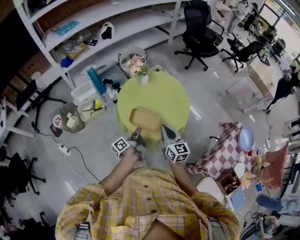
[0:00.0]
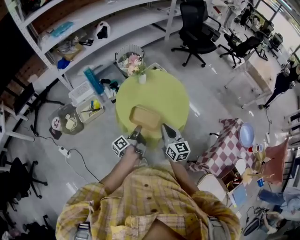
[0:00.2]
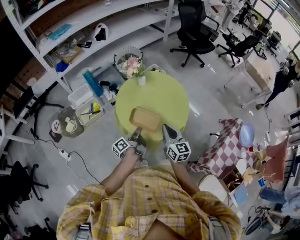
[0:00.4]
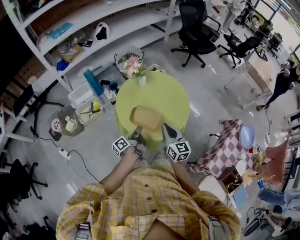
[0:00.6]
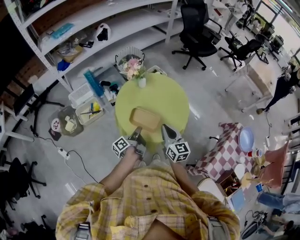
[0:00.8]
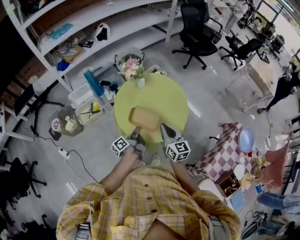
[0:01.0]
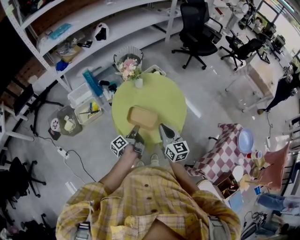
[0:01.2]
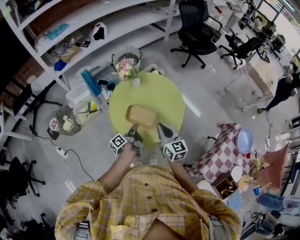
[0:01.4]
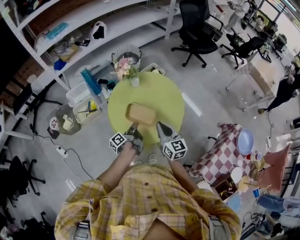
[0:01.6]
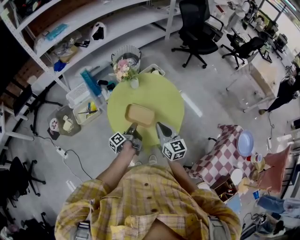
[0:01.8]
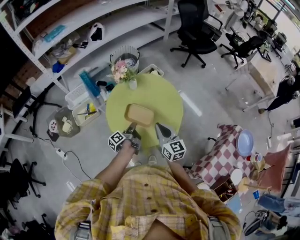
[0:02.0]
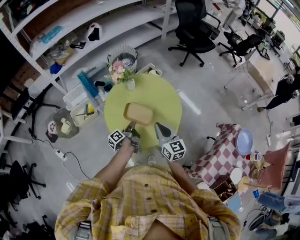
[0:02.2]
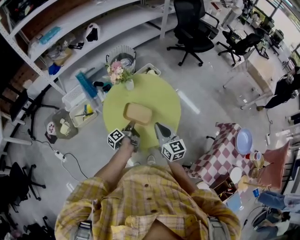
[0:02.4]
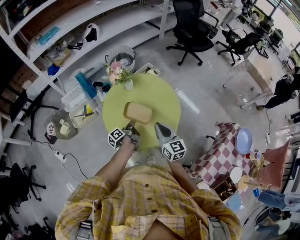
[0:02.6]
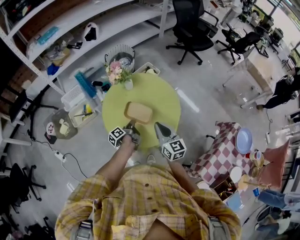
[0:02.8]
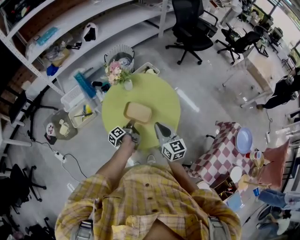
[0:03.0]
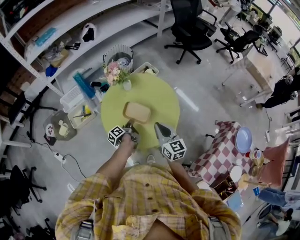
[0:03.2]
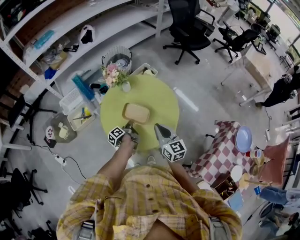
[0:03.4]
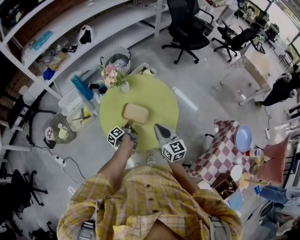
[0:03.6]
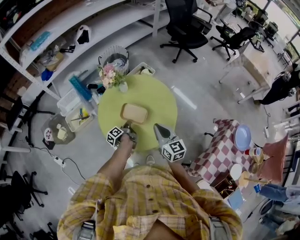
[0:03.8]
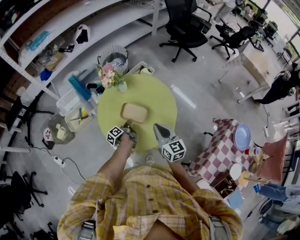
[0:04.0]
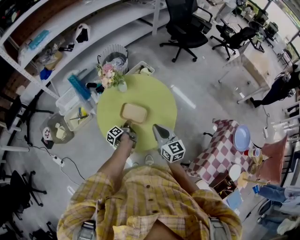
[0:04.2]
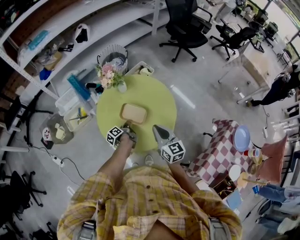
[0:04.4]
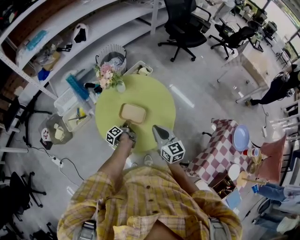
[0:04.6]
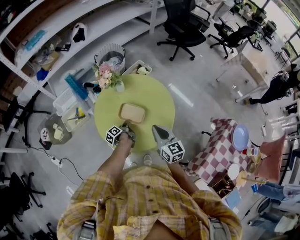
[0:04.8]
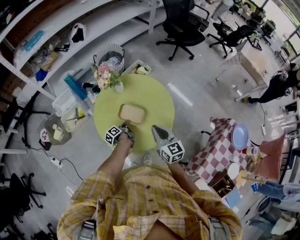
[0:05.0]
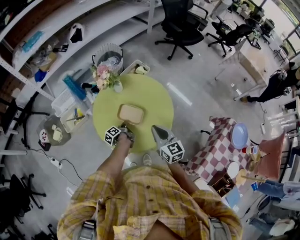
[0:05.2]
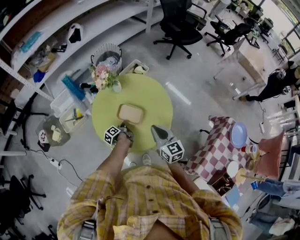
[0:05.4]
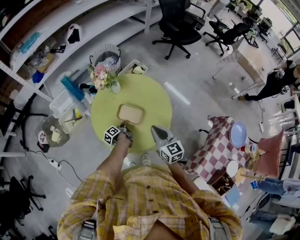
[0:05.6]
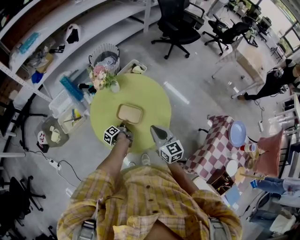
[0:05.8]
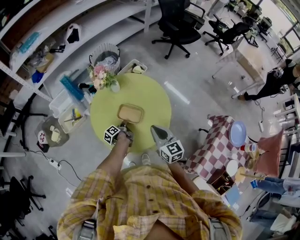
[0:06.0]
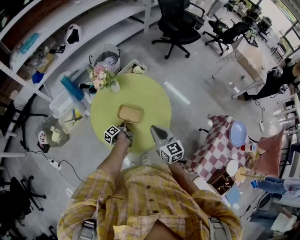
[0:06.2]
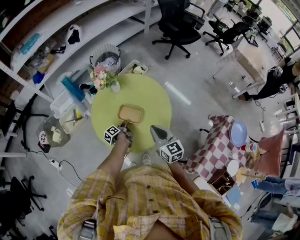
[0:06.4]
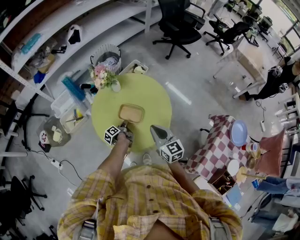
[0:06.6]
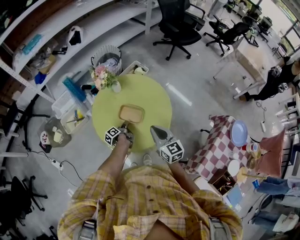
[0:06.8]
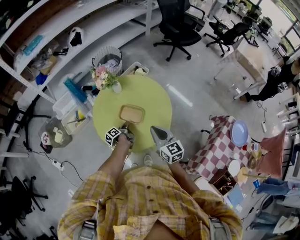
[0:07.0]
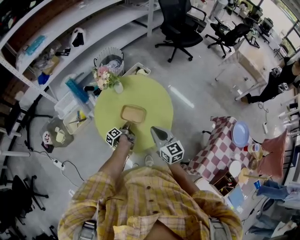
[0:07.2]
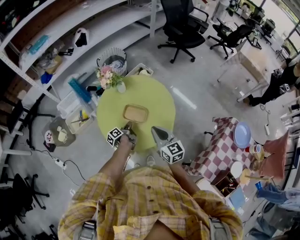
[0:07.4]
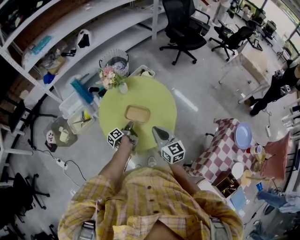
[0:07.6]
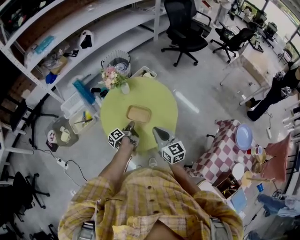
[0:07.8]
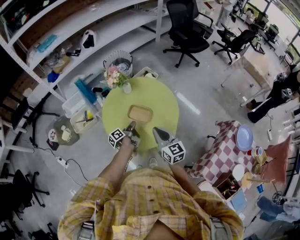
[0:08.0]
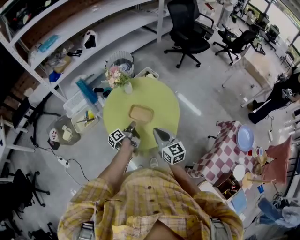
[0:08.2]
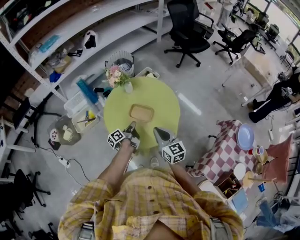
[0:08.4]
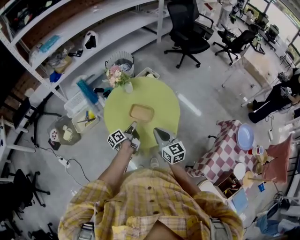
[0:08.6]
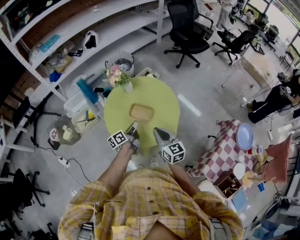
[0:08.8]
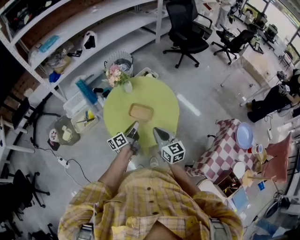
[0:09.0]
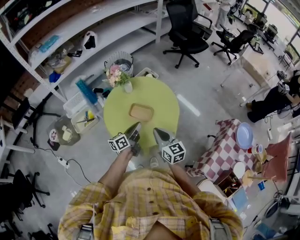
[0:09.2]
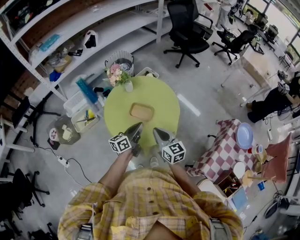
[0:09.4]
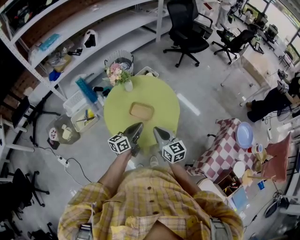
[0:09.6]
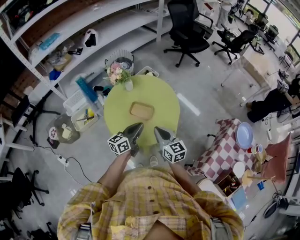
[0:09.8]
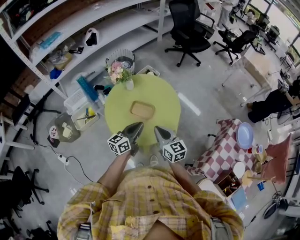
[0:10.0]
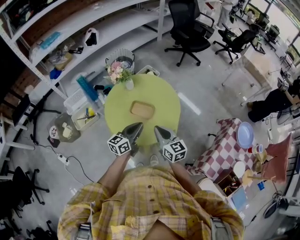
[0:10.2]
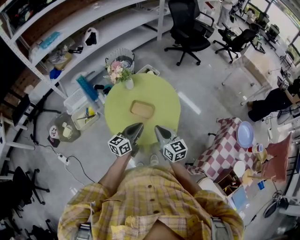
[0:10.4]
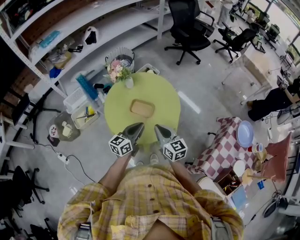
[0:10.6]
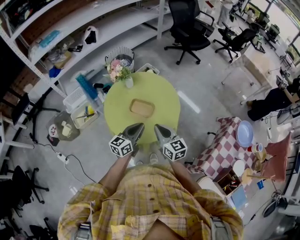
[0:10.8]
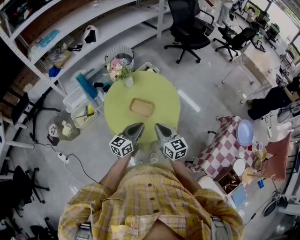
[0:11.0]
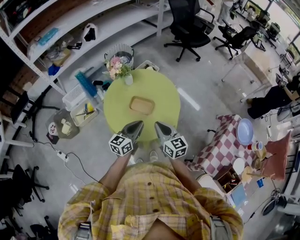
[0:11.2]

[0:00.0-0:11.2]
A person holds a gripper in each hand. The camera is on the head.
0:00.0 to 0:01.6: The right gripper shifts by about 10 cm.
0:06.4 to 0:08.0: The right gripper moves about 5 cm.

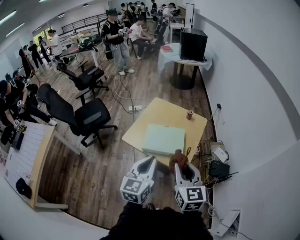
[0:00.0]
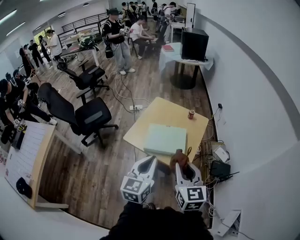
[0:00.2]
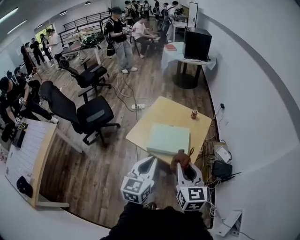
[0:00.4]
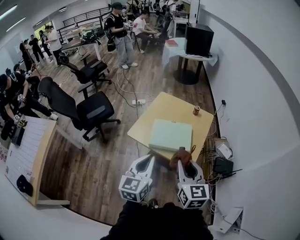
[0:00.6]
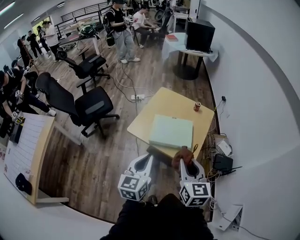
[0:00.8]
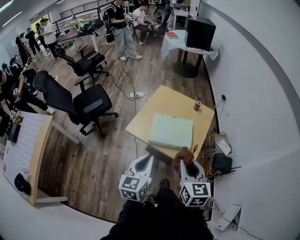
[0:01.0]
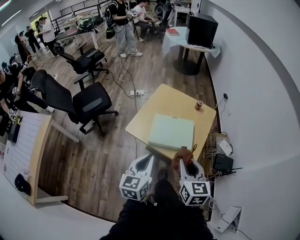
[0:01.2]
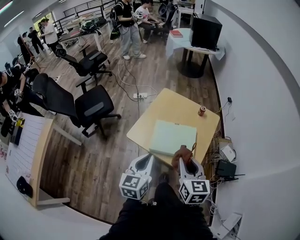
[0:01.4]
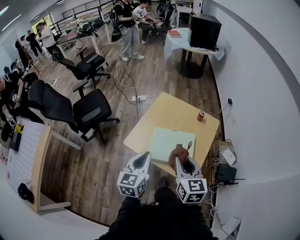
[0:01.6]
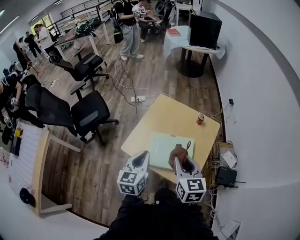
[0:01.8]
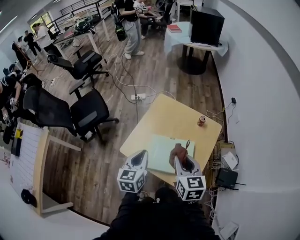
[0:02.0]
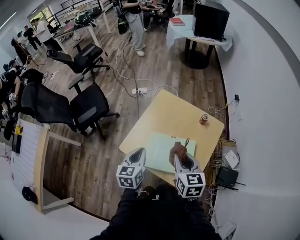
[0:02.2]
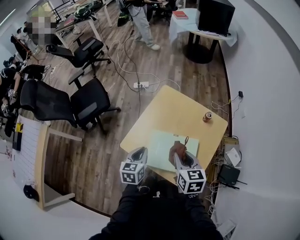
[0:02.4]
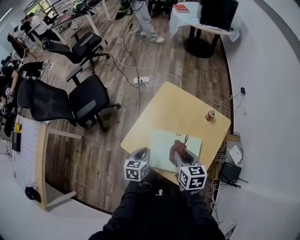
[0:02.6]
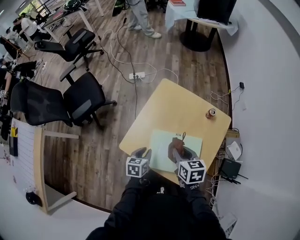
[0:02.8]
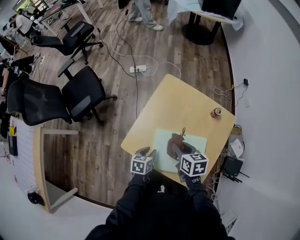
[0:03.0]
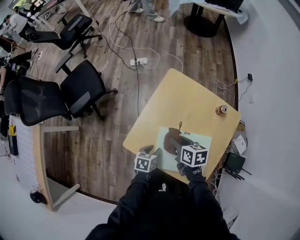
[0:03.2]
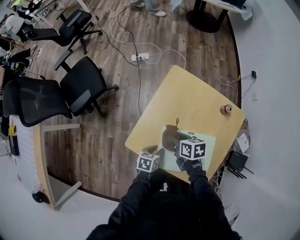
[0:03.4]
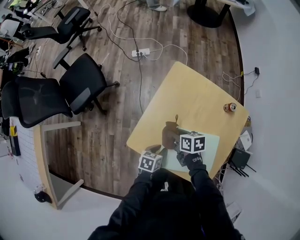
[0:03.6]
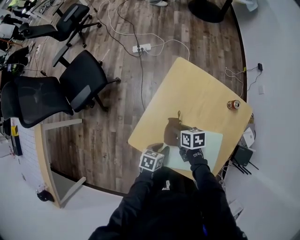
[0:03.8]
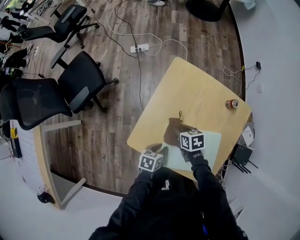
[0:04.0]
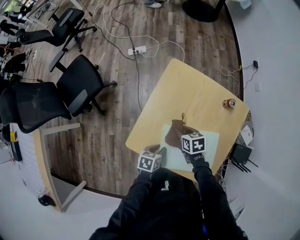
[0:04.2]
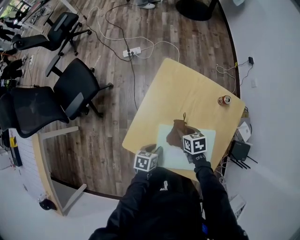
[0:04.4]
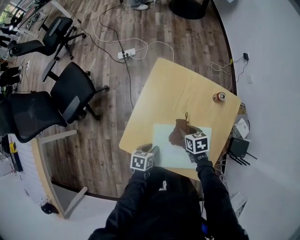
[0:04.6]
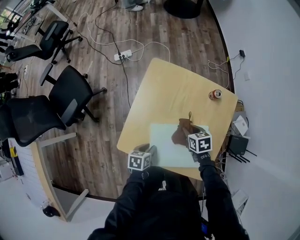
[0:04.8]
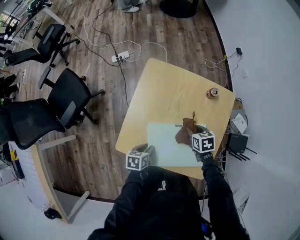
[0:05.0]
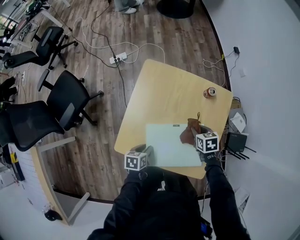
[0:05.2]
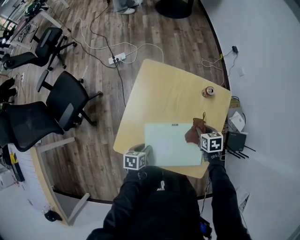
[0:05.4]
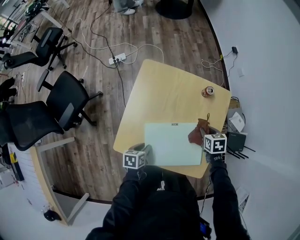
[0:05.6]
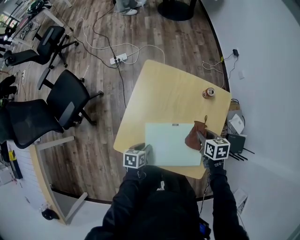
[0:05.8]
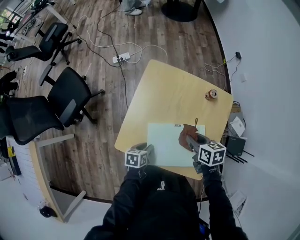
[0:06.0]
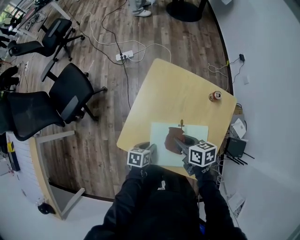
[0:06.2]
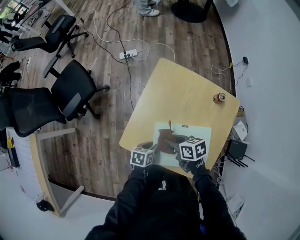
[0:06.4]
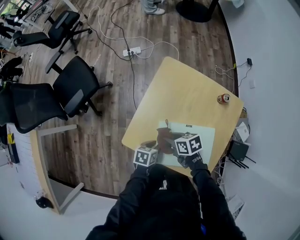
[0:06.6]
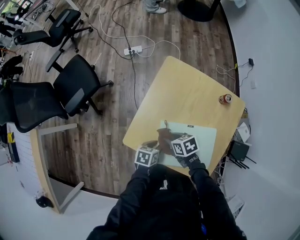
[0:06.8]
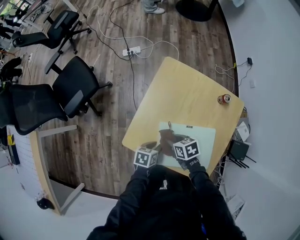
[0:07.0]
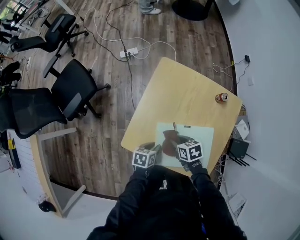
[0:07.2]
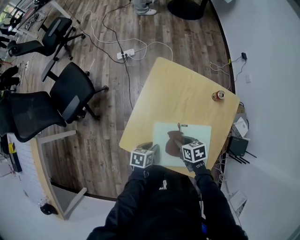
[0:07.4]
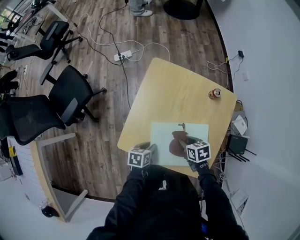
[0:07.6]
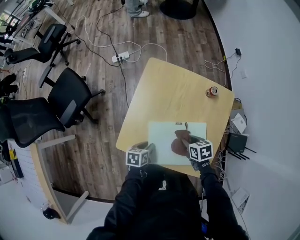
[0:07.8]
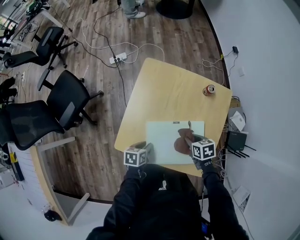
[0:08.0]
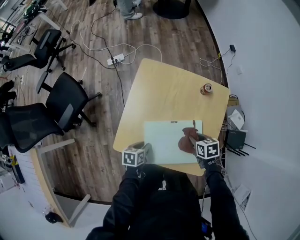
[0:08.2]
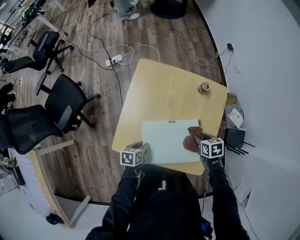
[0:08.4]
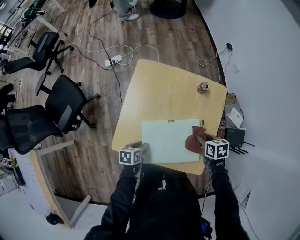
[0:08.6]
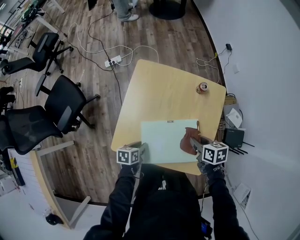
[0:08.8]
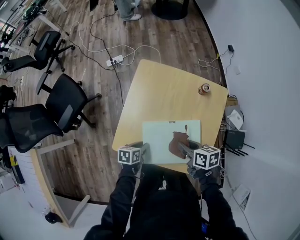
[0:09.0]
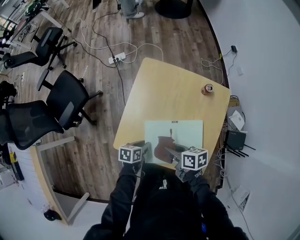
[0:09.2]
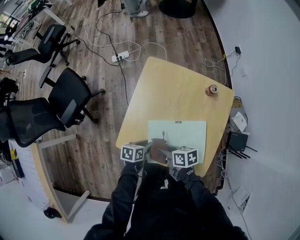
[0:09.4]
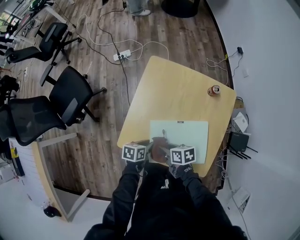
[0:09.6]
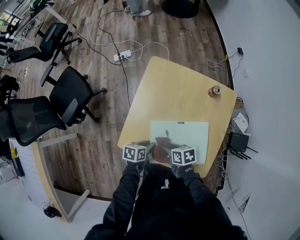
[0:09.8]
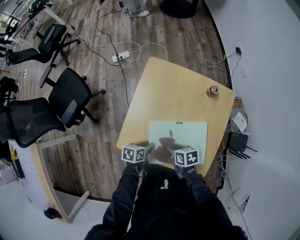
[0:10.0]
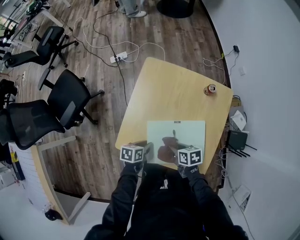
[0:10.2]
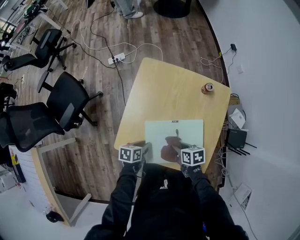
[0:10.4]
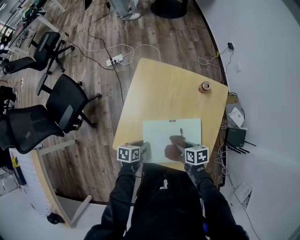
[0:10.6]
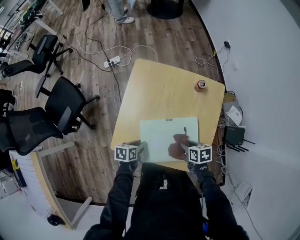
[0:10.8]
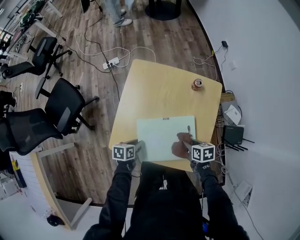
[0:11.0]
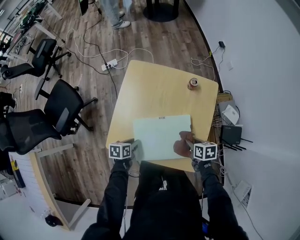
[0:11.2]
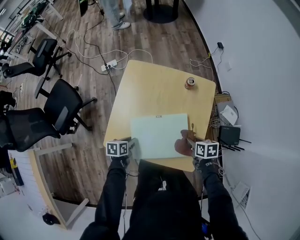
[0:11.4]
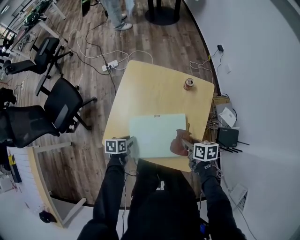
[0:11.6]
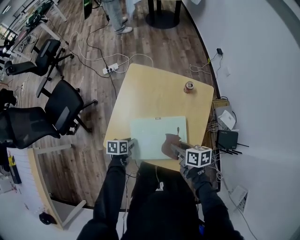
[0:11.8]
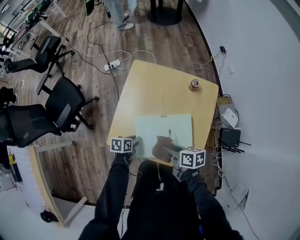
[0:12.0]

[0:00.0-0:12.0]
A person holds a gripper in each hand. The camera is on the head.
0:00.0 to 0:01.6: The right gripper travels forward and downward by about 20 cm. The left gripper travels forward, downward and to the left by approximately 20 cm.
0:01.6 to 0:03.0: The right gripper shifts some 30 cm forward and downward, and rotates roughly 30 degrees, while the left gripper shifts roughly 35 cm downward and forward, angles its fingers downward, by about 30 degrees, and opens up.
0:03.0 to 0:04.4: The right gripper shifts about 15 cm downward.
0:04.4 to 0:06.0: The right gripper shifts about 15 cm to the right and upward.
0:06.0 to 0:07.6: The right gripper heads downward, covering approximately 10 cm.
0:07.6 to 0:09.0: The right gripper heads upward, covering about 10 cm, goes to the right and returns, about 15 cm each way, and turns by about 20 degrees.
0:09.0 to 0:10.4: The right gripper travels downward by some 10 cm.
0:10.4 to 0:12.0: The right gripper heads upward, covering some 10 cm, goes to the right and returns, some 15 cm each way, and rotates about 20 degrees.

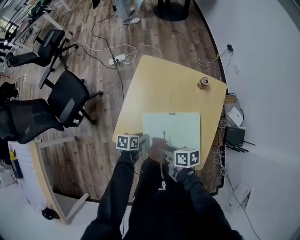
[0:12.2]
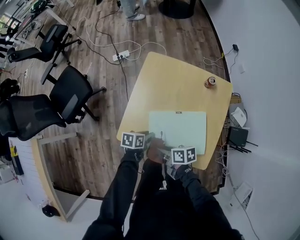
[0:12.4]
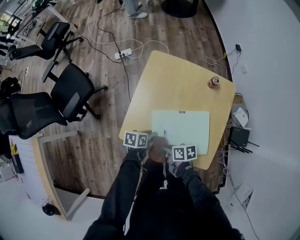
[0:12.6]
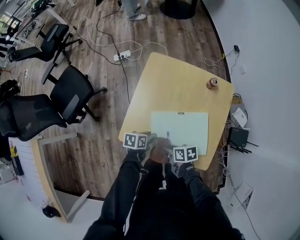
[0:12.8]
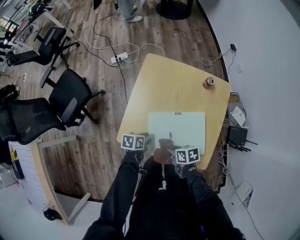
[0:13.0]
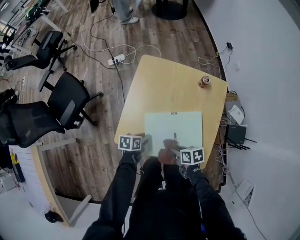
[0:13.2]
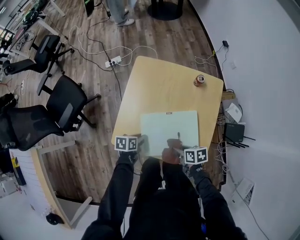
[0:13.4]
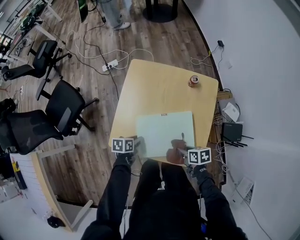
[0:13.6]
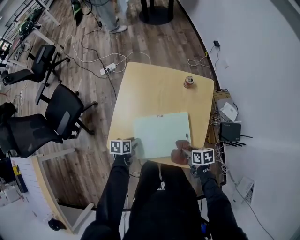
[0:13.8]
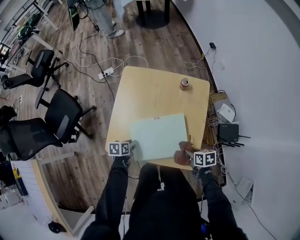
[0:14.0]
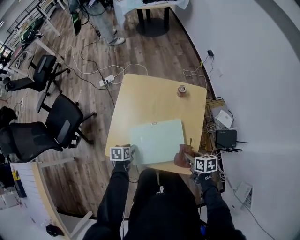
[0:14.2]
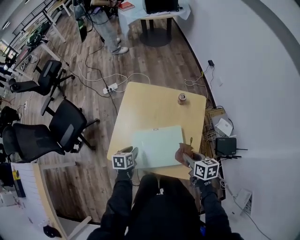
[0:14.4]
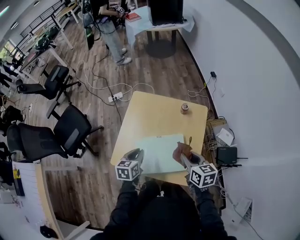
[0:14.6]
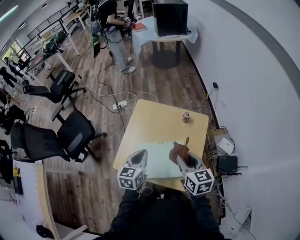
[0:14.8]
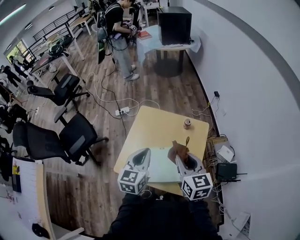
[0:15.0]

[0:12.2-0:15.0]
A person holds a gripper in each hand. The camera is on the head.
0:12.2 to 0:13.6: The right gripper ends up some 15 cm from where it was.
0:13.6 to 0:15.0: Both grippers move upward, approximately 35 cm. The left gripper angles its fingers upward, by some 40 degrees, and closes up. Meanwhile the right gripper tilts its fingers roughly 30 degrees upward.
